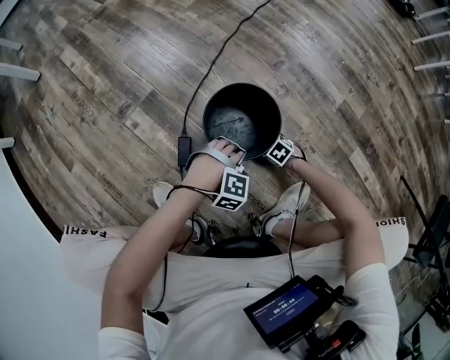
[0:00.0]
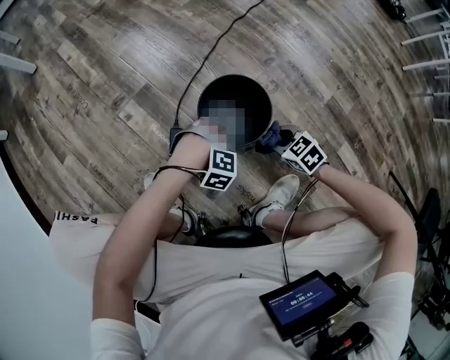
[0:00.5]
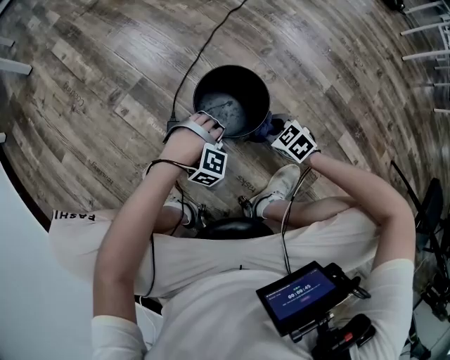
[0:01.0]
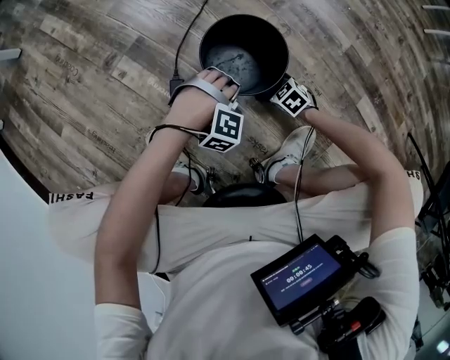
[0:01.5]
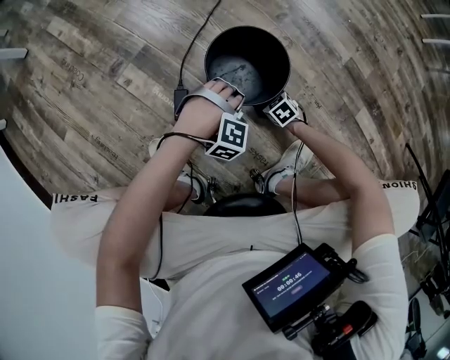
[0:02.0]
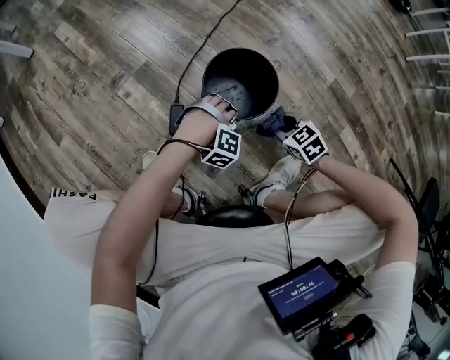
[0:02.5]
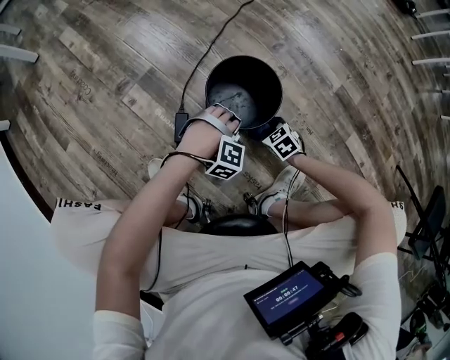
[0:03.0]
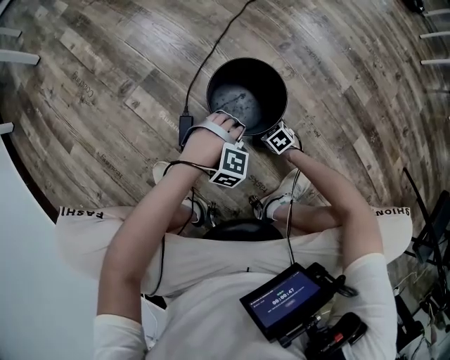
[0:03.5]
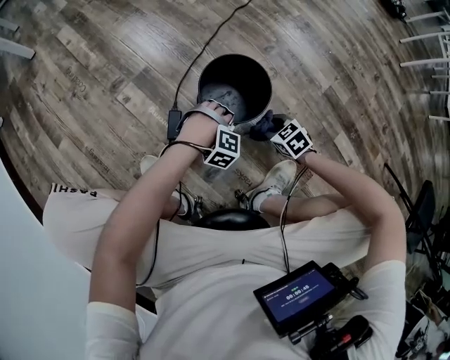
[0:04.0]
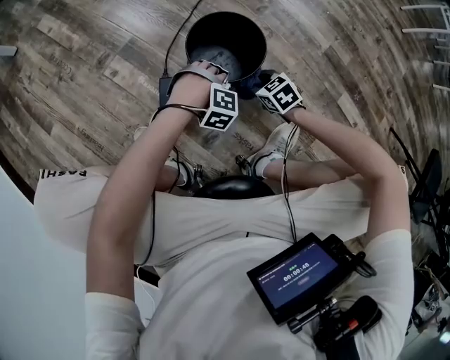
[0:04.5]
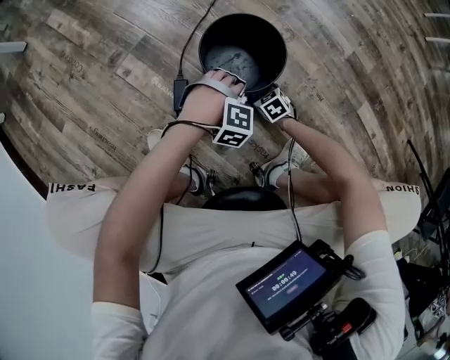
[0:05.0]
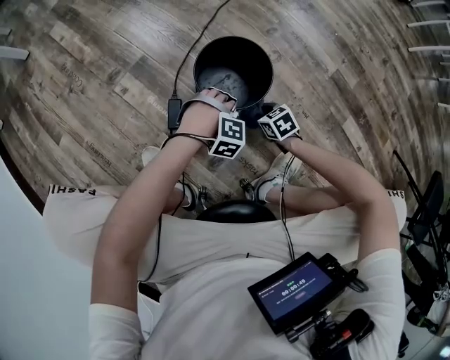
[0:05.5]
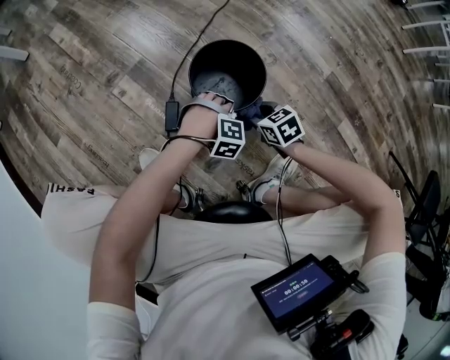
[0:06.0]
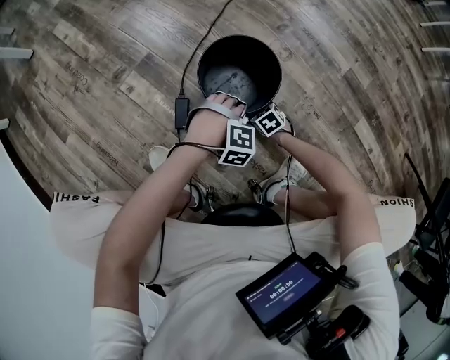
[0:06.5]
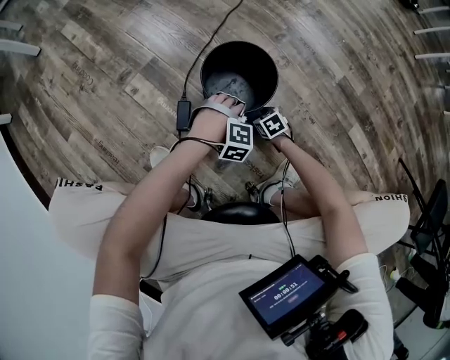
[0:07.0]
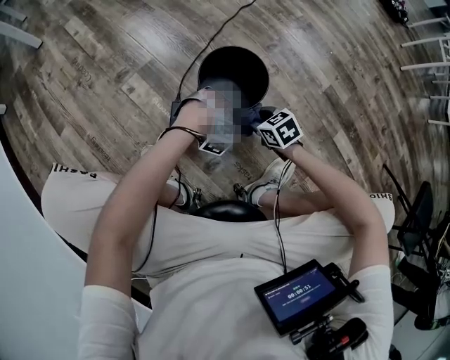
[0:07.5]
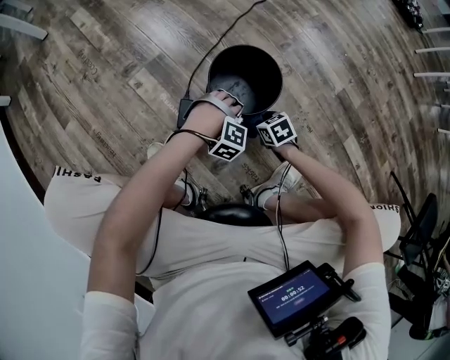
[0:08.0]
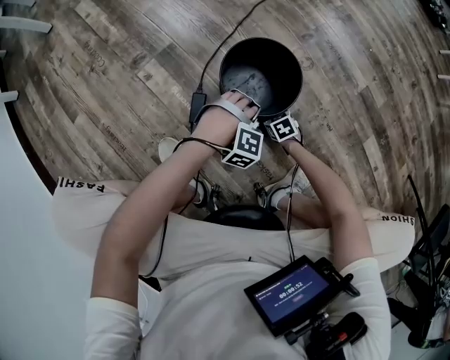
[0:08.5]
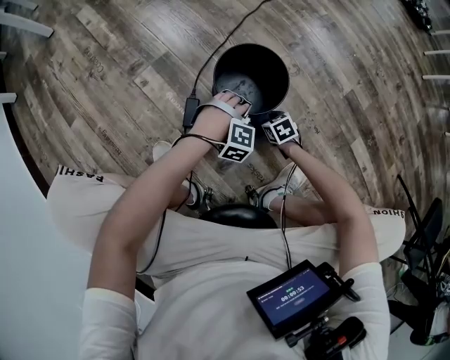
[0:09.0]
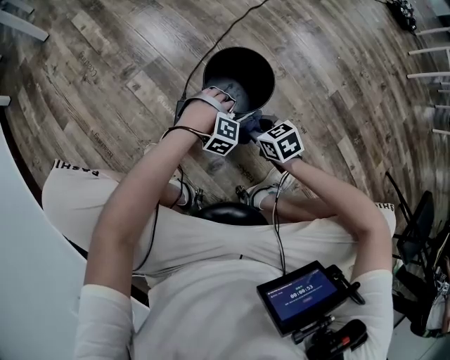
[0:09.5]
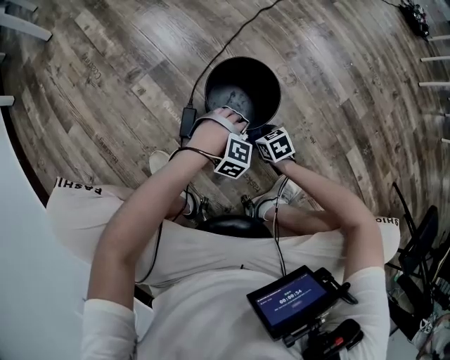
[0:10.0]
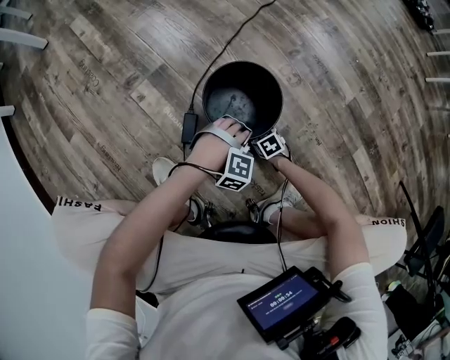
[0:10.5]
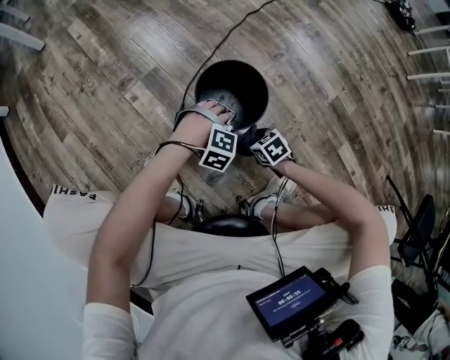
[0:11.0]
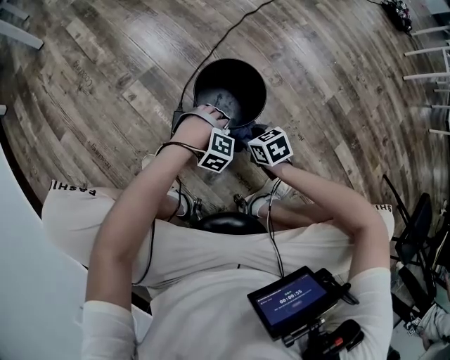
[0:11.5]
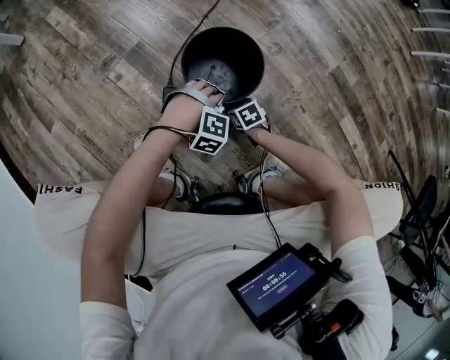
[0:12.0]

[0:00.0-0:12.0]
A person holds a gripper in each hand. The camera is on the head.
0:00.0 to 0:02.0: The right gripper reaches approximately 20 cm upward, then returns.
0:02.0 to 0:04.0: The right gripper moves up and down over some 20 cm, changing direction 2 times.
0:04.0 to 0:06.0: The right gripper moves about 15 cm downward and comes back.
0:06.0 to 0:08.0: The right gripper goes up and down, about 20 cm each way, reversing 2 times.
0:08.0 to 0:10.0: The right gripper goes up and down, roughly 20 cm each way, reversing 2 times.
0:10.0 to 0:12.0: The right gripper moves up and down over some 20 cm, changing direction 2 times.

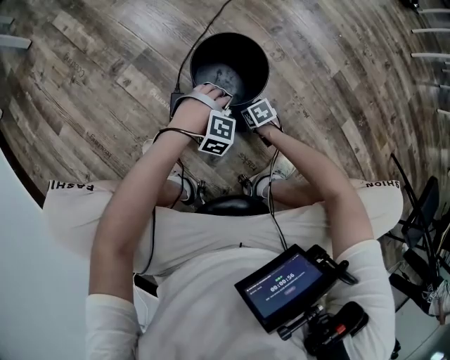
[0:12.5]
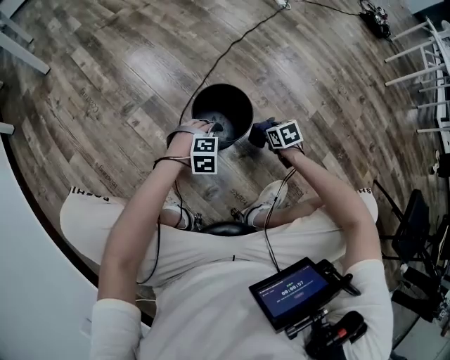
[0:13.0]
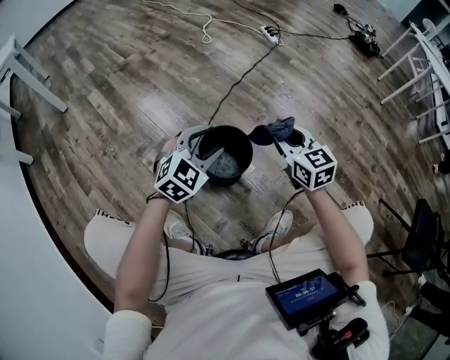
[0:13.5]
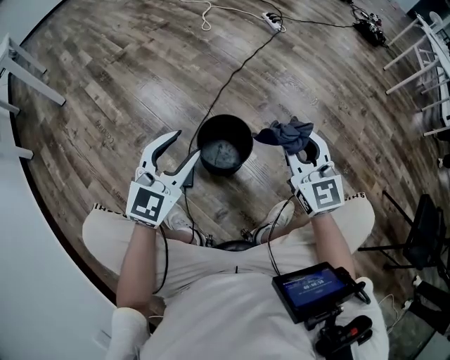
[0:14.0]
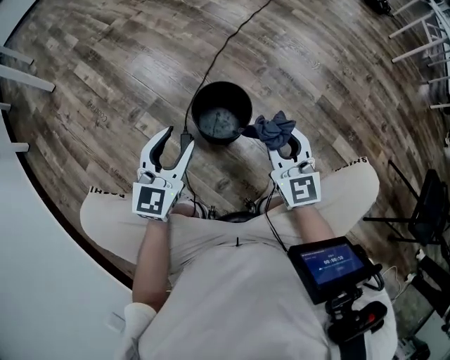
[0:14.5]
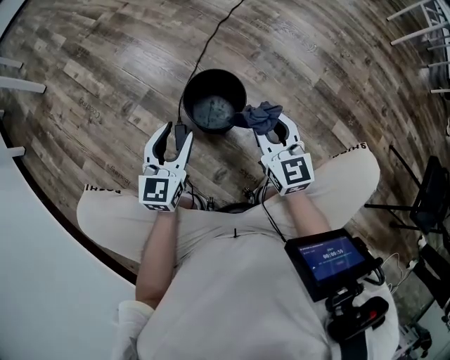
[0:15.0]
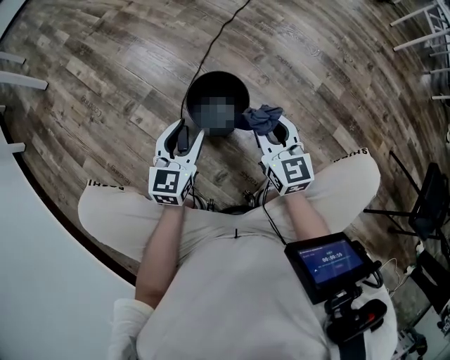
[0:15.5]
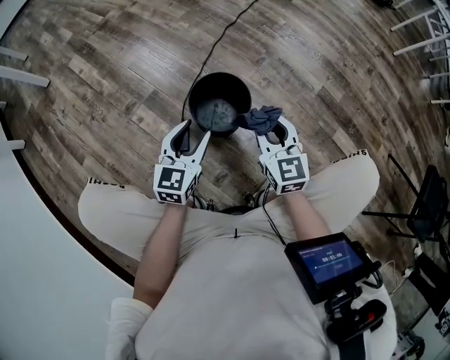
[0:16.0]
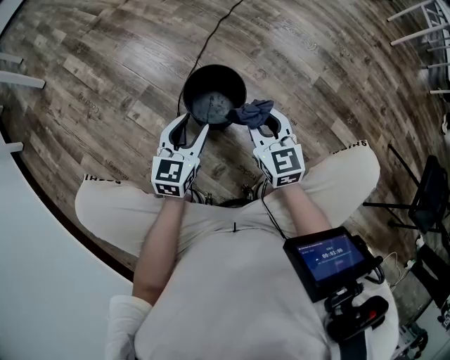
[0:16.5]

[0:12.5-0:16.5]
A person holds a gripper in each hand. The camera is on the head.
0:12.5 to 0:14.5: The right gripper moves upward, about 50 cm, and tilts its fingers about 60 degrees upward.
0:14.5 to 0:16.5: The right gripper travels downward by some 5 cm.

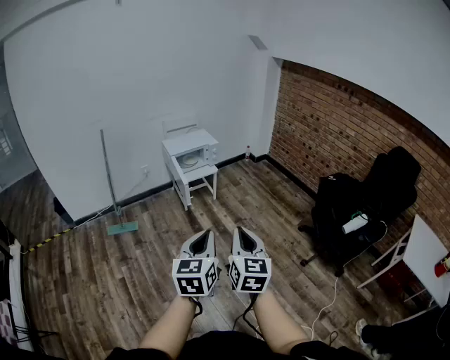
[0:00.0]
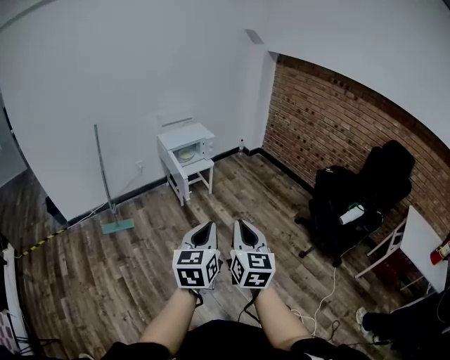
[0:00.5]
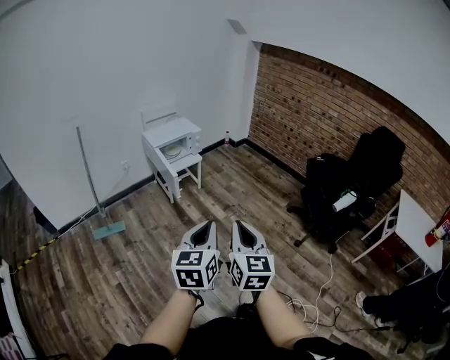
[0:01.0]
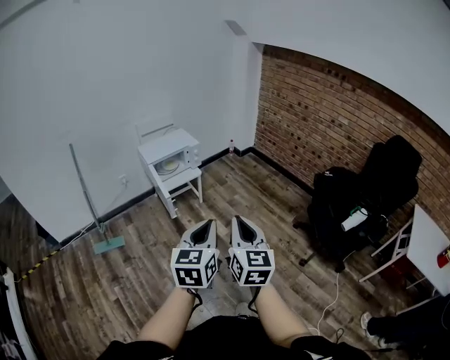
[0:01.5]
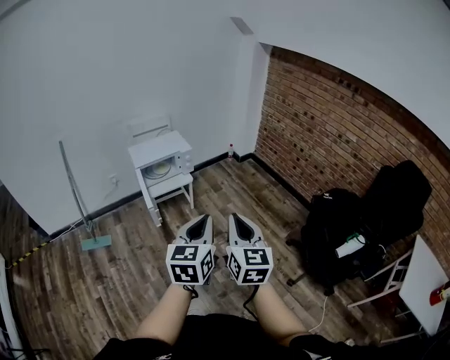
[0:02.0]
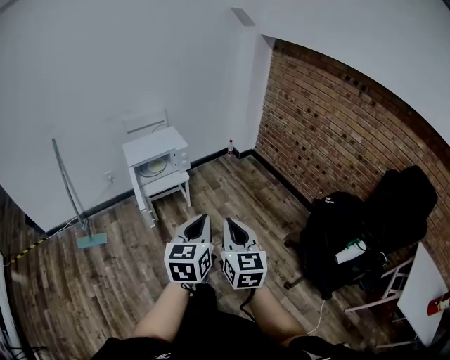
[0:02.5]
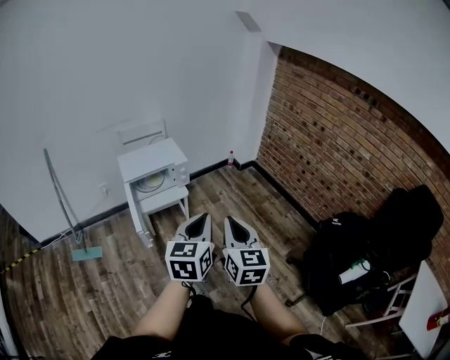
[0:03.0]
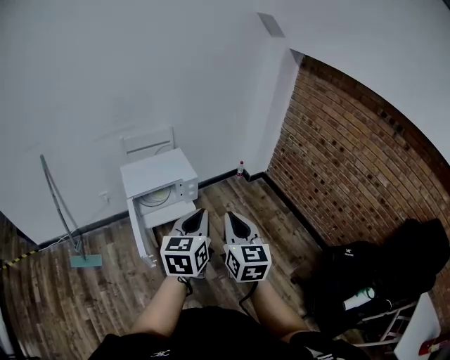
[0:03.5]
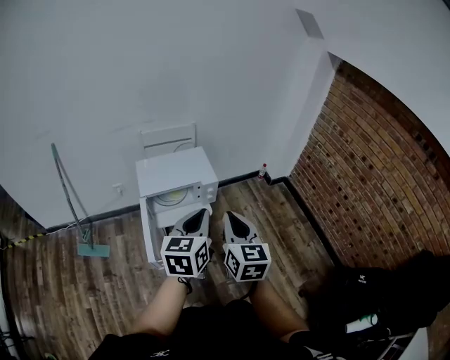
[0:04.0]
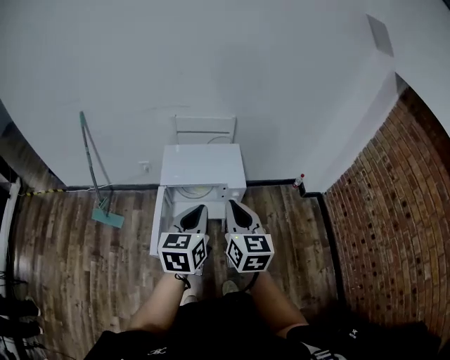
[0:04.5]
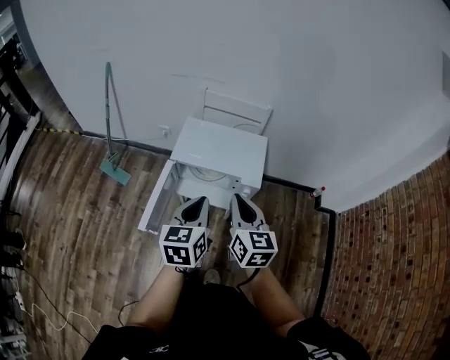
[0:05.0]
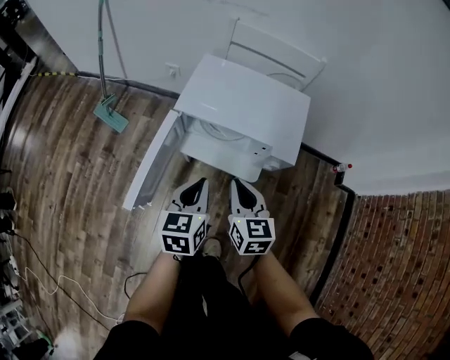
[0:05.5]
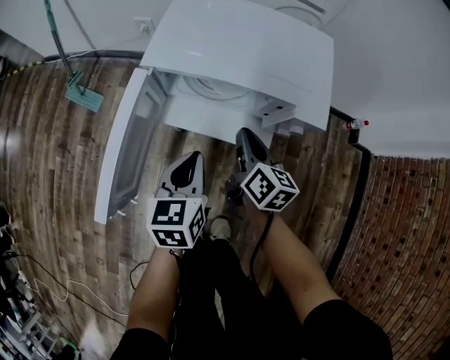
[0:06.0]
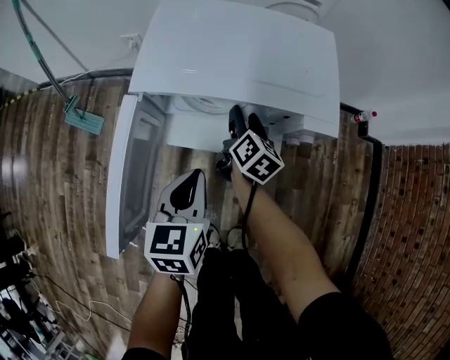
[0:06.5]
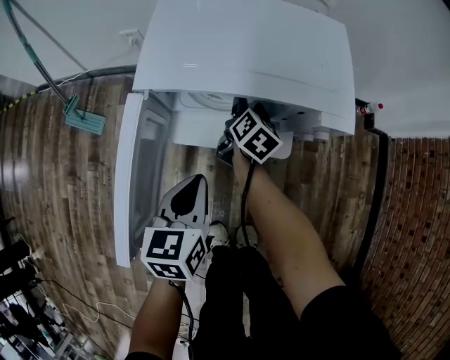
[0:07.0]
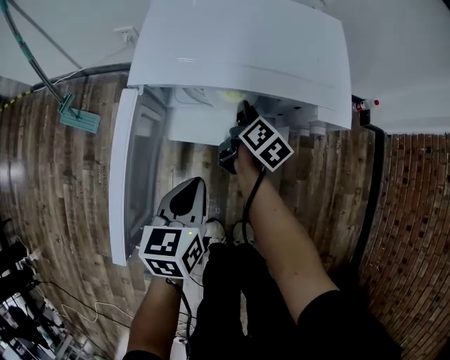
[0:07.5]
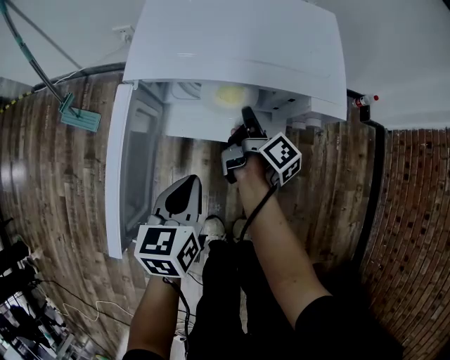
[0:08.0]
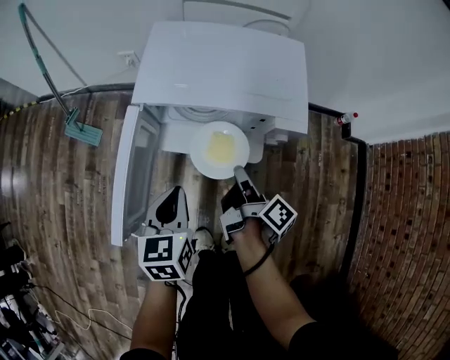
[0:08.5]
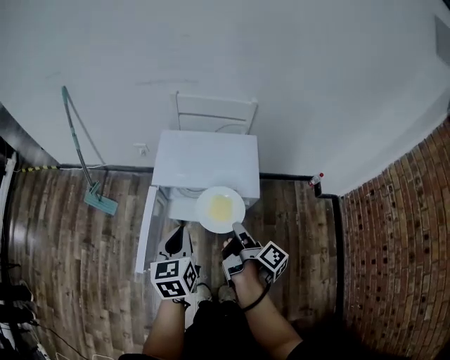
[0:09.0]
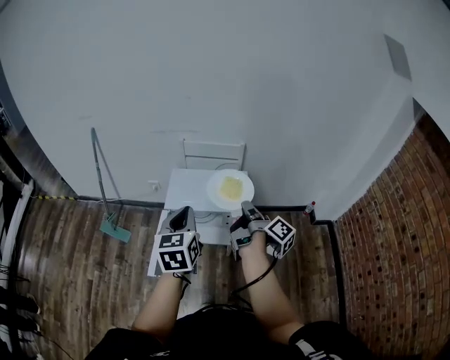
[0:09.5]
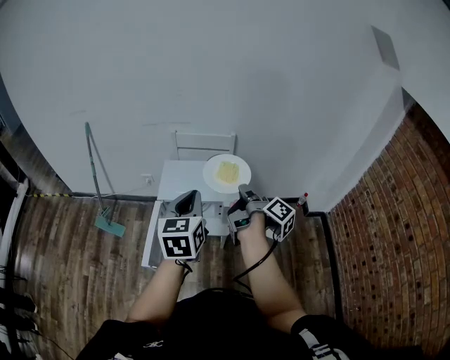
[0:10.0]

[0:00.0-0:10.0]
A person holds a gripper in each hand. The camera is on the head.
0:00.0 to 0:02.0: The grippers both shift forward by some 30 cm.
0:02.0 to 0:04.0: The two grippers travel together, forward, about 50 cm.
0:04.0 to 0:06.0: The grippers both shift downward by approximately 50 cm. The left gripper changes its angle by some 40 degrees, while the right gripper turns by some 40 degrees.
0:06.0 to 0:08.0: The right gripper is displaced downward and forward by roughly 10 cm, twists roughly 40 degrees clockwise, seen from behind, and opens, then closes again.
0:08.0 to 0:10.0: Both grippers move upward, some 50 cm. The left gripper swivels some 30 degrees.

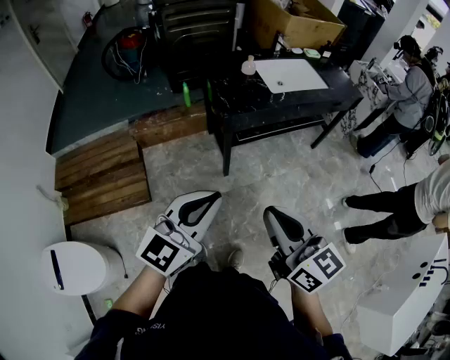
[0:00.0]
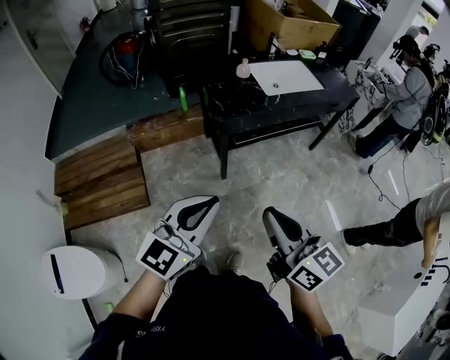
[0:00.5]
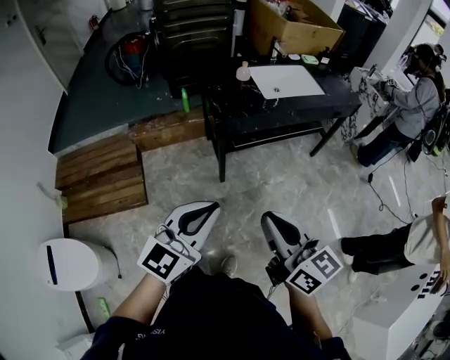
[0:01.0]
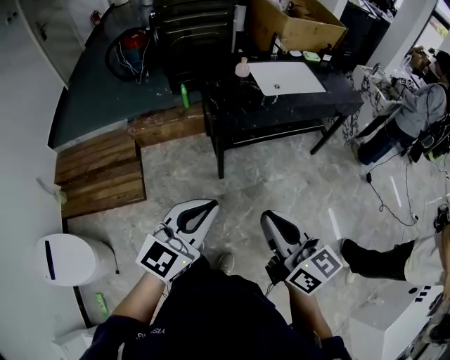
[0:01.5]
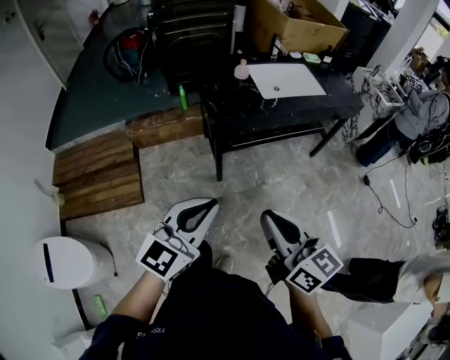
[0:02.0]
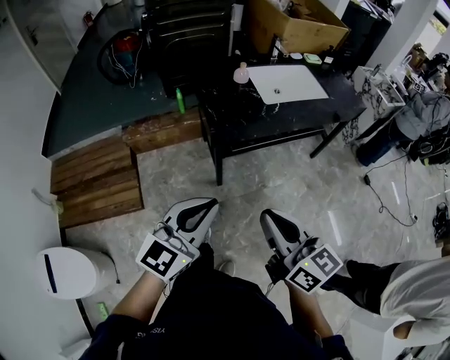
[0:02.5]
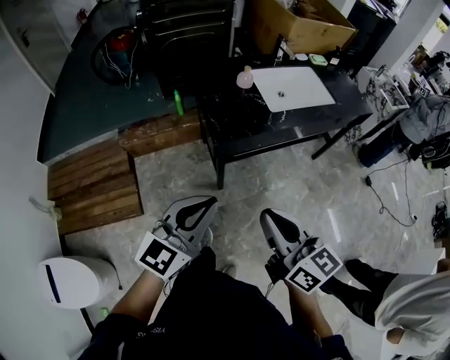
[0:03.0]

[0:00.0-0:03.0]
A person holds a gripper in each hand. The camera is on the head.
0:00.0 to 0:01.5: The two grippers go some 5 cm to the right.
0:01.5 to 0:03.0: Both grippers move forward, some 15 cm.
